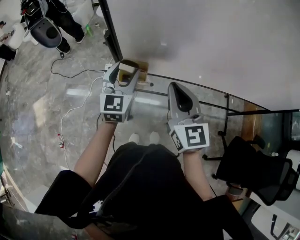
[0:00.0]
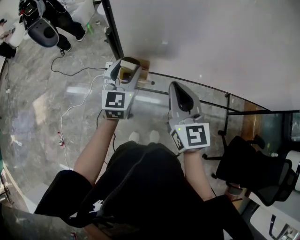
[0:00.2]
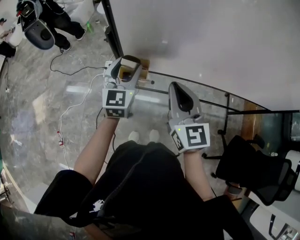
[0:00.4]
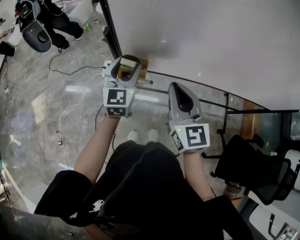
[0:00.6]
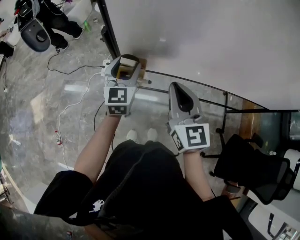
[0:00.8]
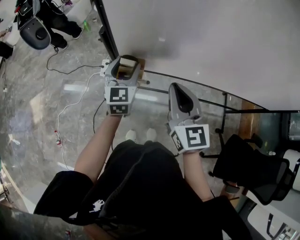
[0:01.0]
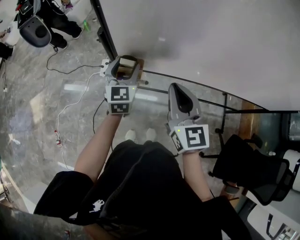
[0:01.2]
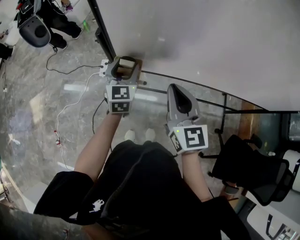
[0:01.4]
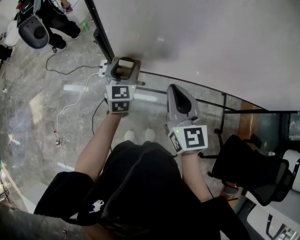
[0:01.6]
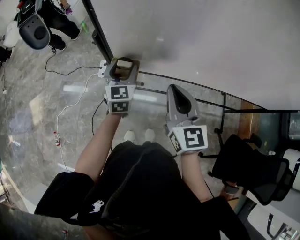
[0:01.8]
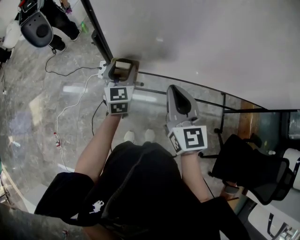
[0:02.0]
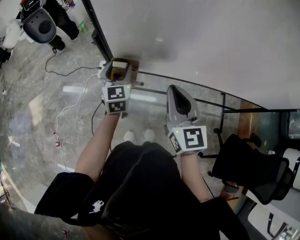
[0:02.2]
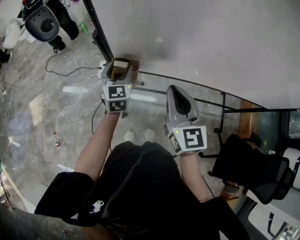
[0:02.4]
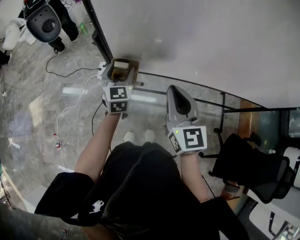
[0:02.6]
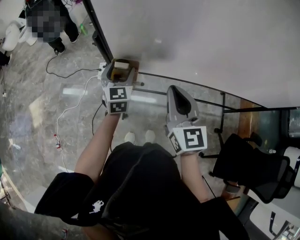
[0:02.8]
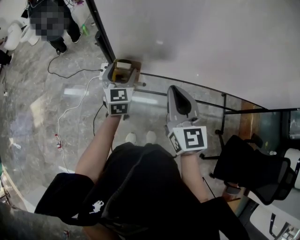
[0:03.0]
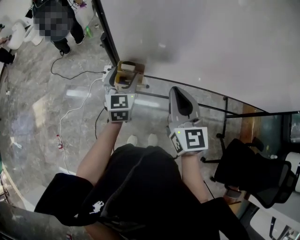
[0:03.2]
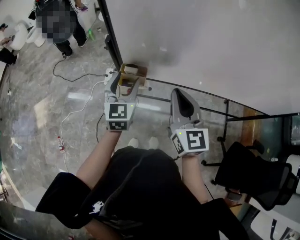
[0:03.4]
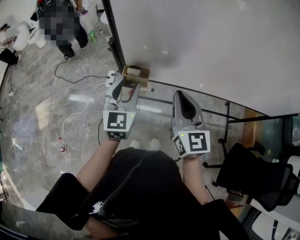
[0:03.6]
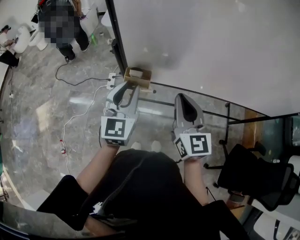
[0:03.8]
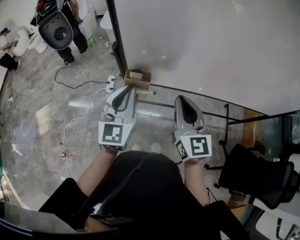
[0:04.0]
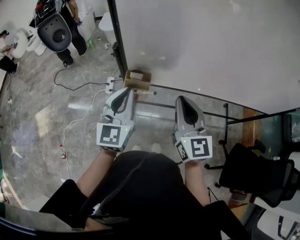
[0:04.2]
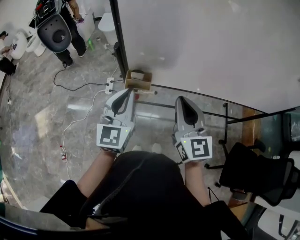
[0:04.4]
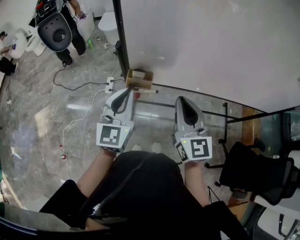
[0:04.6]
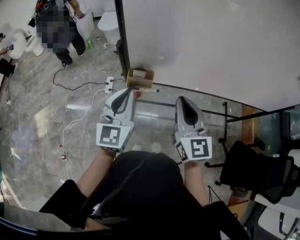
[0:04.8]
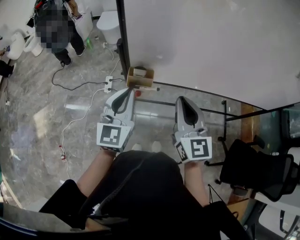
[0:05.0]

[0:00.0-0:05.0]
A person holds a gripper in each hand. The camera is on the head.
0:00.0 to 0:01.6: The left gripper is displaced downward by about 5 cm.
0:01.6 to 0:03.4: The left gripper goes some 5 cm backward.
0:03.4 to 0:05.0: The right gripper moves roughly 5 cm, while the left gripper heads backward and upward, covering roughly 10 cm, and closes its fingers.

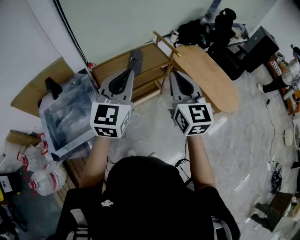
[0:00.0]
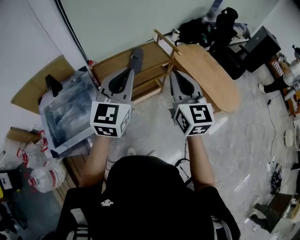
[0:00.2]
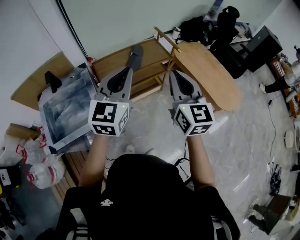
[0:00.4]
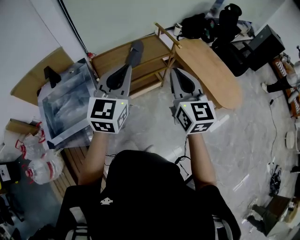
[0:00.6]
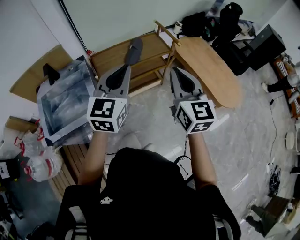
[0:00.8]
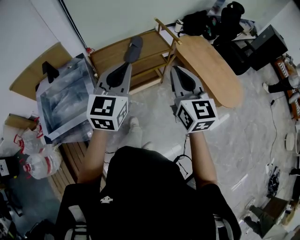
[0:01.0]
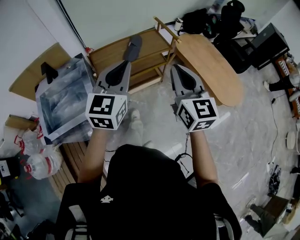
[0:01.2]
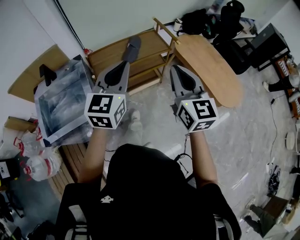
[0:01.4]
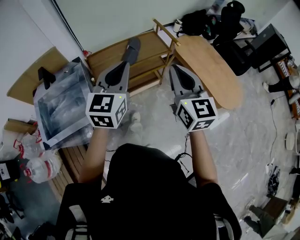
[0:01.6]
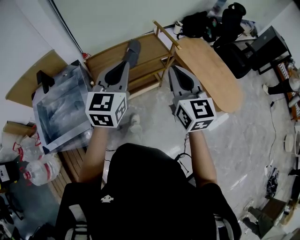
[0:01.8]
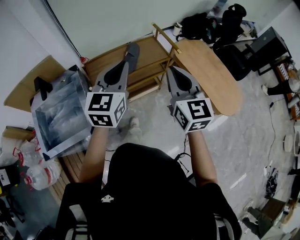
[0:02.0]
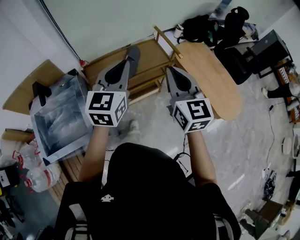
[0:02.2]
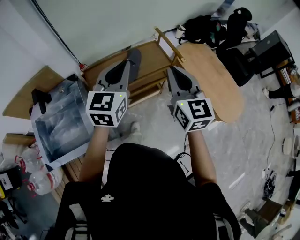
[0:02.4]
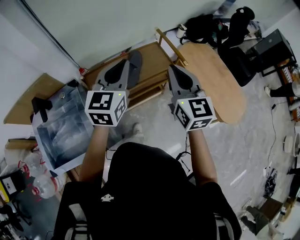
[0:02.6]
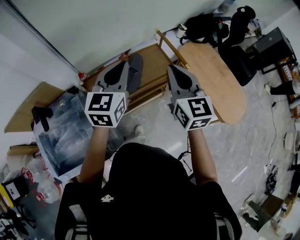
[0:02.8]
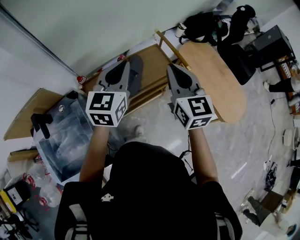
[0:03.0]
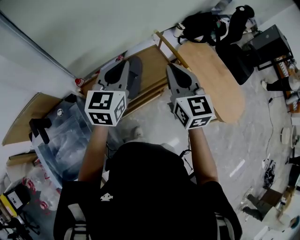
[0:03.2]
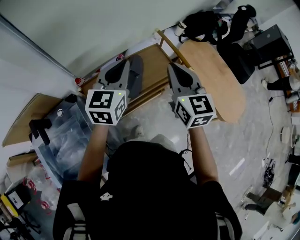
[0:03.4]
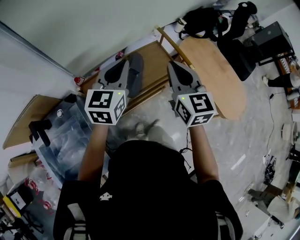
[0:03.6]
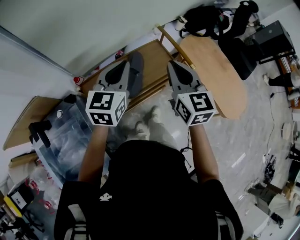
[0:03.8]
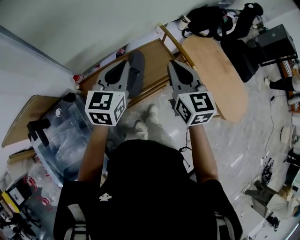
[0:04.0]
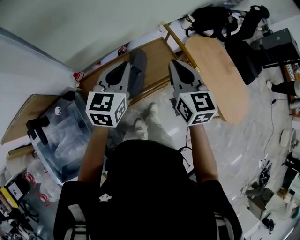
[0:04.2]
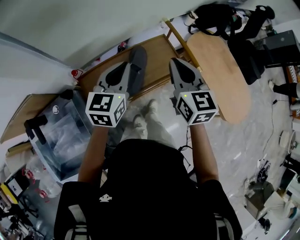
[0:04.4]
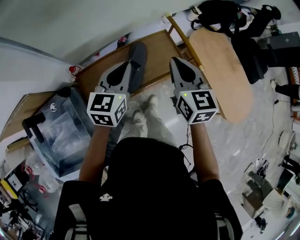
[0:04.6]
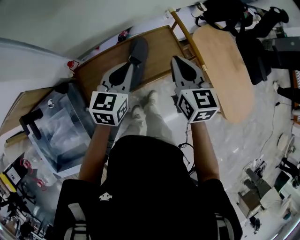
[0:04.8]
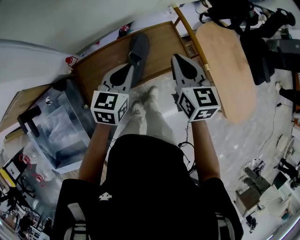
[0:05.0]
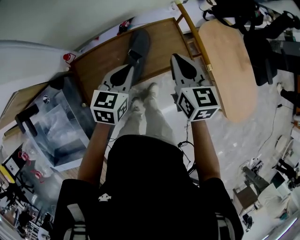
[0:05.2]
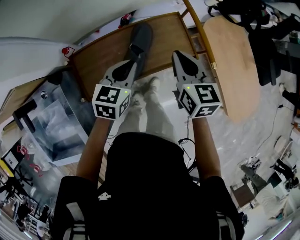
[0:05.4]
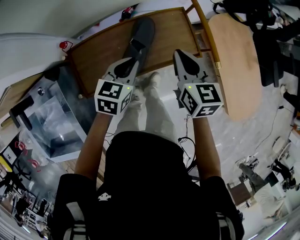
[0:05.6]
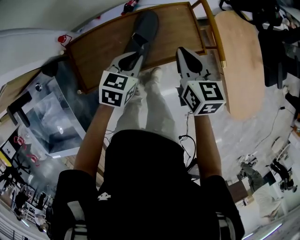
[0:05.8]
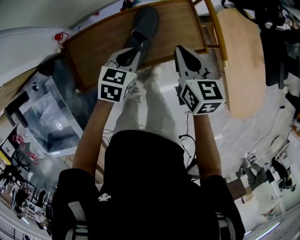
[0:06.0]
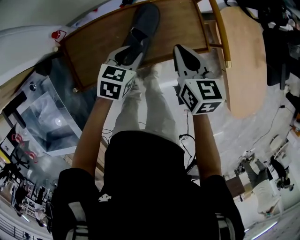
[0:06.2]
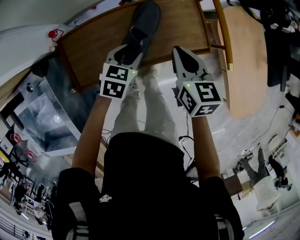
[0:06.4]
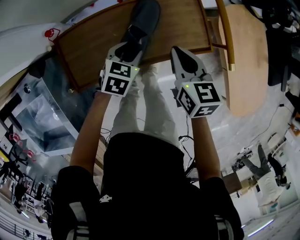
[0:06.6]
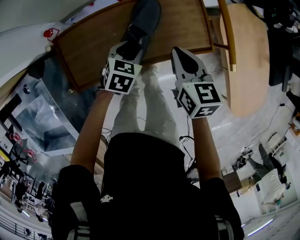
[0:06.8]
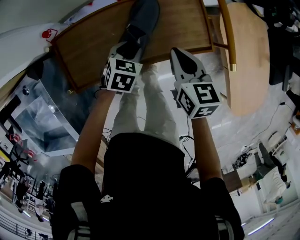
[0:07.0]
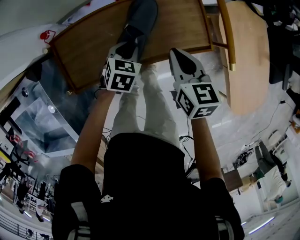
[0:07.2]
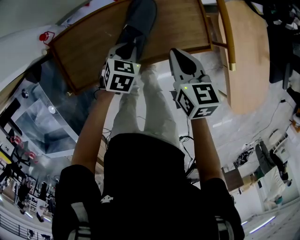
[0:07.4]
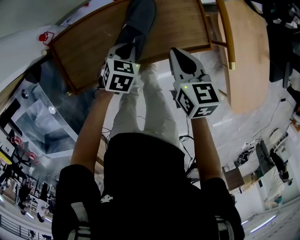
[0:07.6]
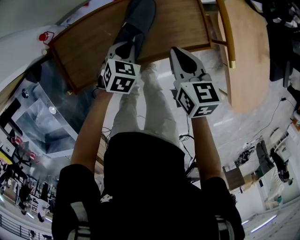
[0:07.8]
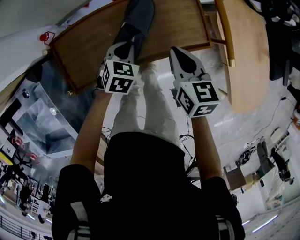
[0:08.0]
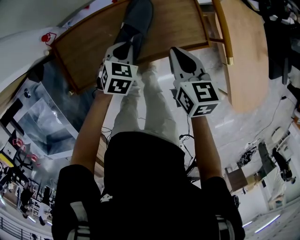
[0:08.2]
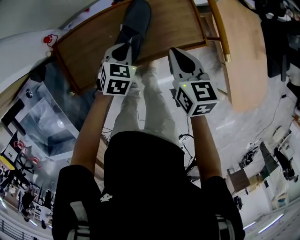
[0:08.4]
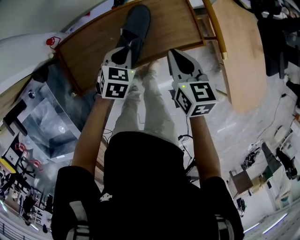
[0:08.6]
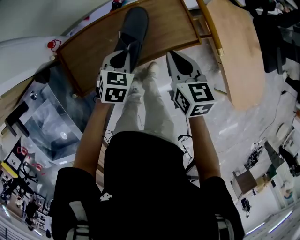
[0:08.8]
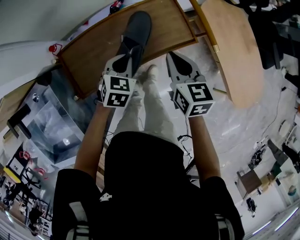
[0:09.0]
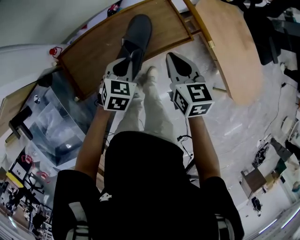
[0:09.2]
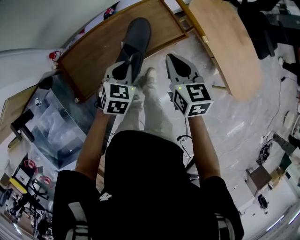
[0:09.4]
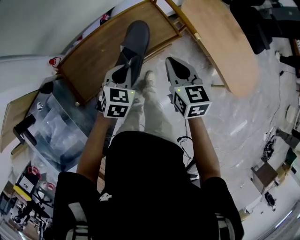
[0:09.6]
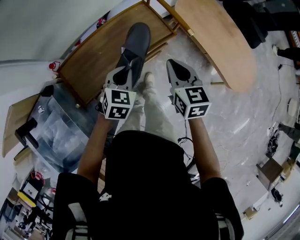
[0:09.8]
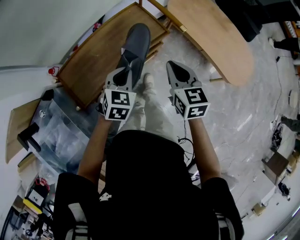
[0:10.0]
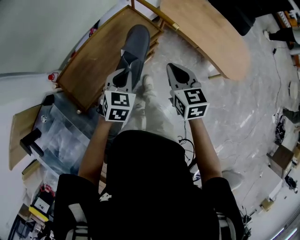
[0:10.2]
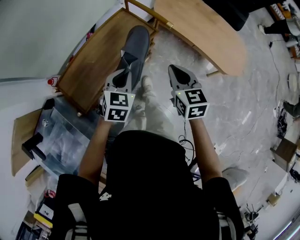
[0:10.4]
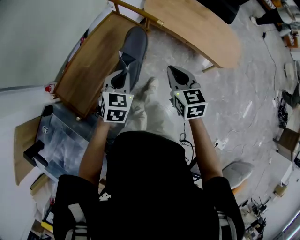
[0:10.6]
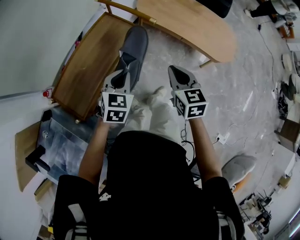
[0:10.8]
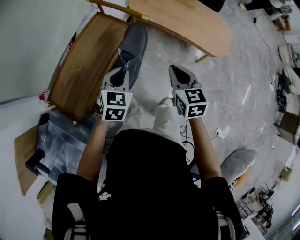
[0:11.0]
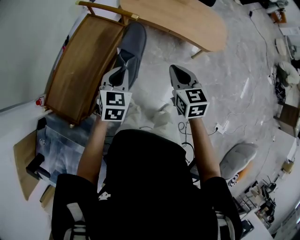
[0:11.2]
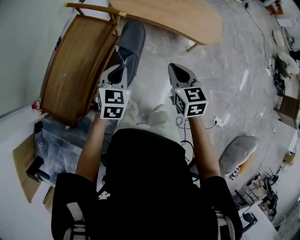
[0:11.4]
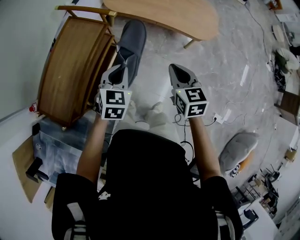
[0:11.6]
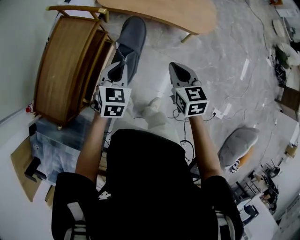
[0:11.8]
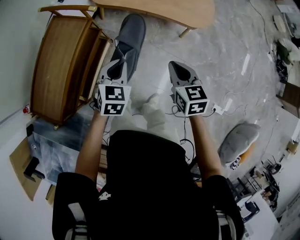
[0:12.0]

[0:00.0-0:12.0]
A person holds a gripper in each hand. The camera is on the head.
0:00.0 to 0:01.6: The left gripper is displaced downward and to the right by approximately 10 cm. Meanwhile the right gripper heads to the right, covering roughly 5 cm.
0:01.6 to 0:03.0: The grippers both shift forward by about 30 cm.
0:03.0 to 0:04.4: The left gripper moves downward and forward, some 15 cm; the right gripper heads forward and downward, covering approximately 15 cm.
0:04.4 to 0:06.0: The two grippers go some 25 cm downward. The left gripper swivels some 30 degrees; the right gripper rotates about 20 degrees.
0:06.0 to 0:07.6: The right gripper is displaced downward by some 5 cm; the left gripper goes some 10 cm downward, and opens, then closes again.
0:07.6 to 0:09.0: The grippers both shift upward by about 10 cm.
0:09.0 to 0:10.4: The right gripper heads backward and to the right, covering roughly 20 cm, and rotates roughly 20 degrees. The left gripper is displaced upward, backward and to the right by roughly 15 cm, and turns by roughly 20 degrees.
0:10.4 to 0:12.0: Both grippers move to the right, about 25 cm. The right gripper swivels roughly 20 degrees.

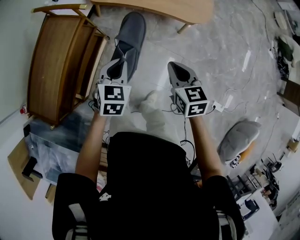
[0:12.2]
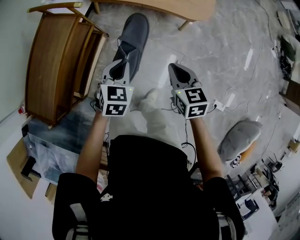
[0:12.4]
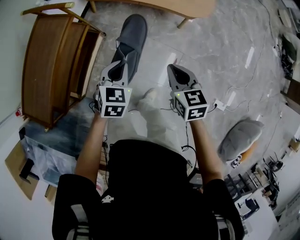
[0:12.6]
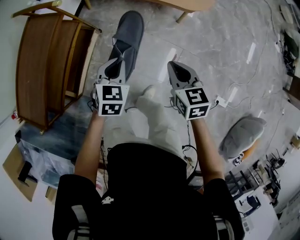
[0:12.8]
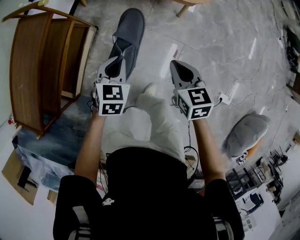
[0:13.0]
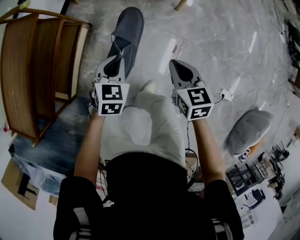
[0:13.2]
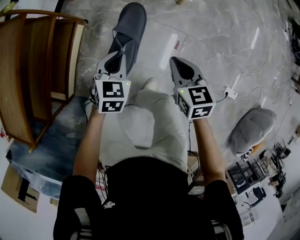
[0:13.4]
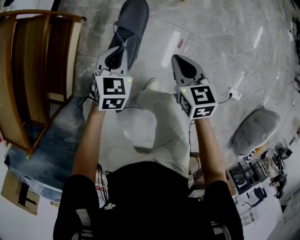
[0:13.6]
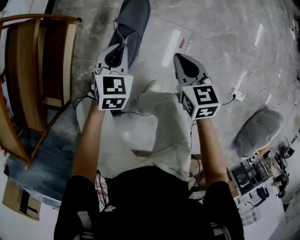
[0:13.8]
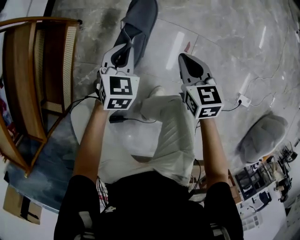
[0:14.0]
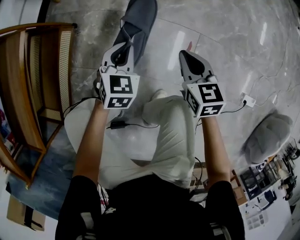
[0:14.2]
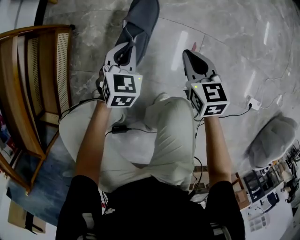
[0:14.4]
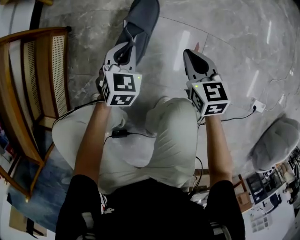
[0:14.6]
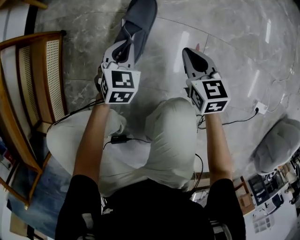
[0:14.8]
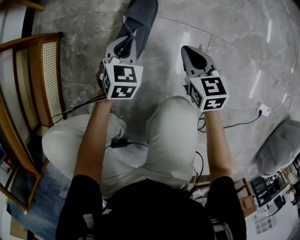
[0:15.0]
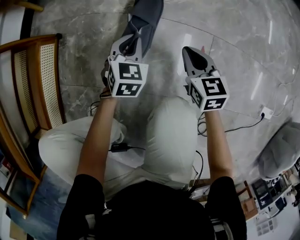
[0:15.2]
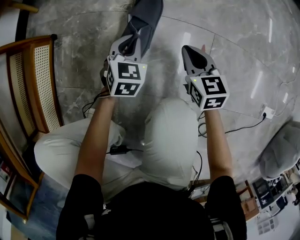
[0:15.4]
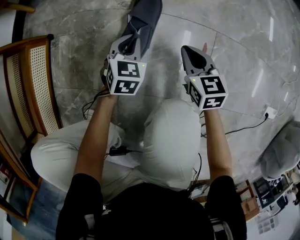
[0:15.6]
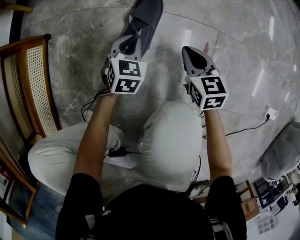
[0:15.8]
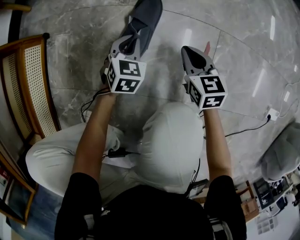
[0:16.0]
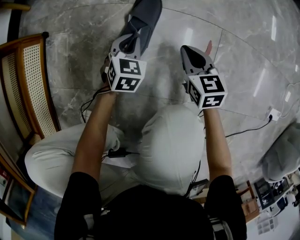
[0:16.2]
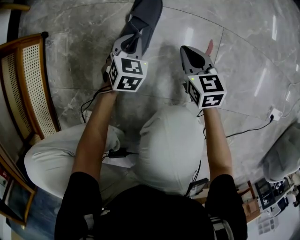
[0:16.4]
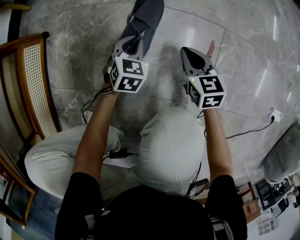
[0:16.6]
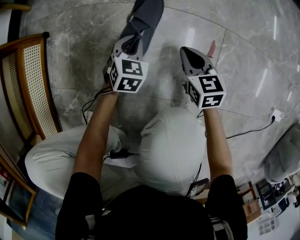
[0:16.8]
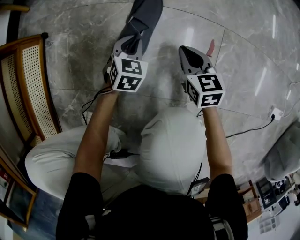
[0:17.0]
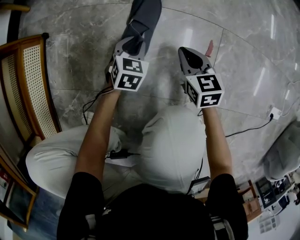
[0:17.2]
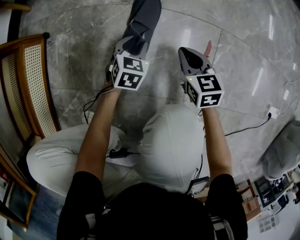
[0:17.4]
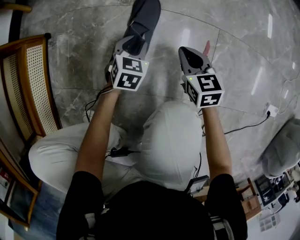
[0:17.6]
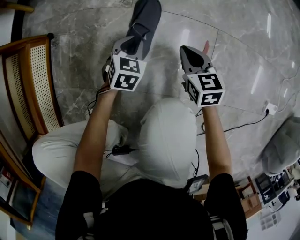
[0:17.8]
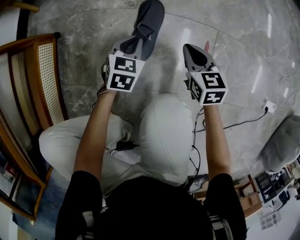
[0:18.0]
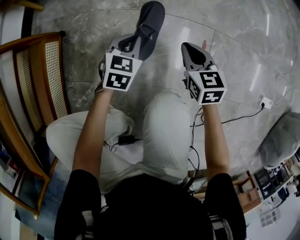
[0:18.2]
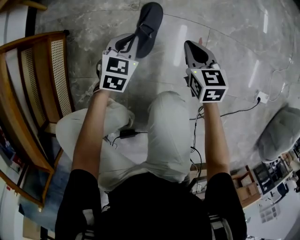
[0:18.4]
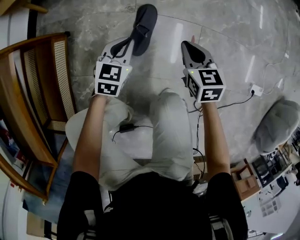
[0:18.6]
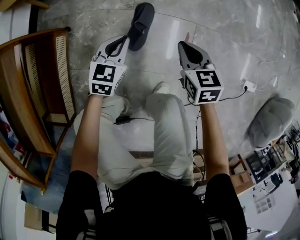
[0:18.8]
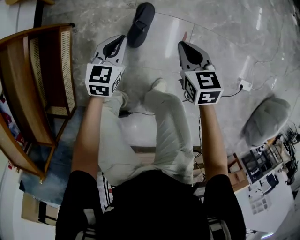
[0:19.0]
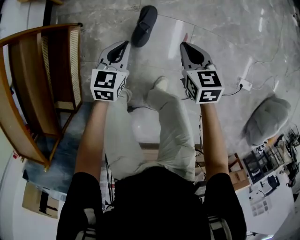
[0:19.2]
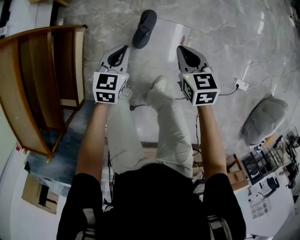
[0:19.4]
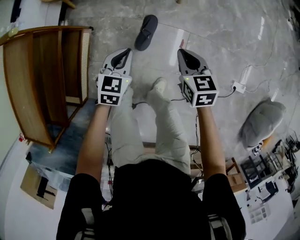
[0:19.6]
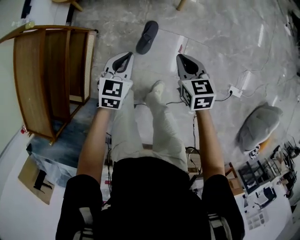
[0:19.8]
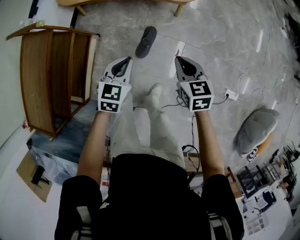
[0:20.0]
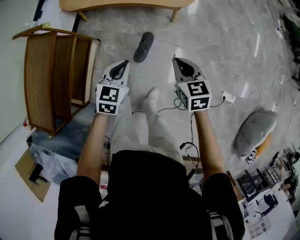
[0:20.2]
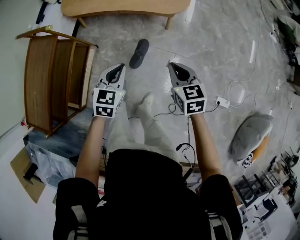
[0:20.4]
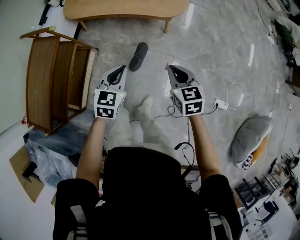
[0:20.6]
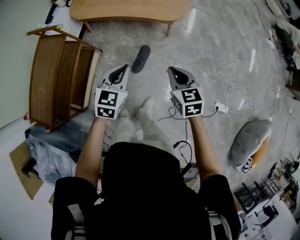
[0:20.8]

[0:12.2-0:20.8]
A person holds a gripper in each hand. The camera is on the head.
0:12.2 to 0:13.6: The grippers both shift downward by approximately 30 cm.
0:13.6 to 0:15.0: The grippers both shift downward by roughly 35 cm.
0:15.0 to 0:16.6: Both grippers move downward, approximately 15 cm.
0:16.6 to 0:18.0: The two grippers go approximately 10 cm upward. The left gripper opens and closes again.
0:18.0 to 0:19.4: The grippers both shift upward by some 40 cm.
0:19.4 to 0:20.8: Both grippers travel together upward, roughly 30 cm.
